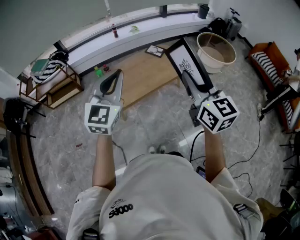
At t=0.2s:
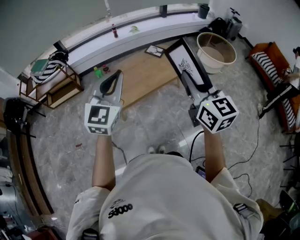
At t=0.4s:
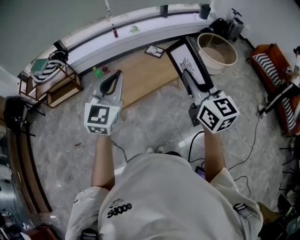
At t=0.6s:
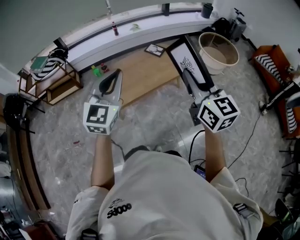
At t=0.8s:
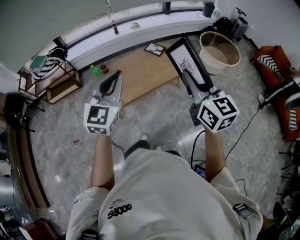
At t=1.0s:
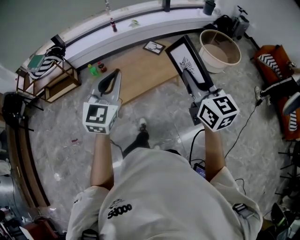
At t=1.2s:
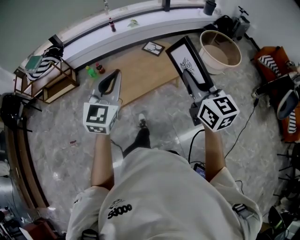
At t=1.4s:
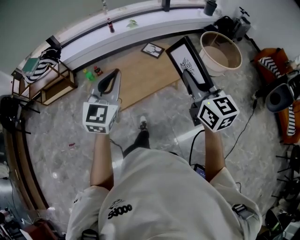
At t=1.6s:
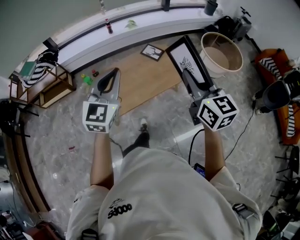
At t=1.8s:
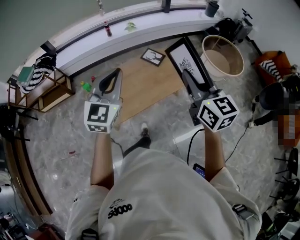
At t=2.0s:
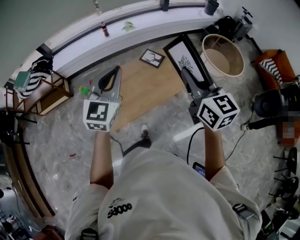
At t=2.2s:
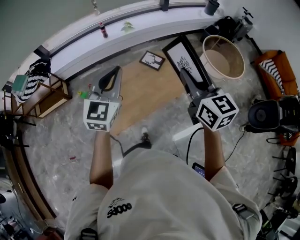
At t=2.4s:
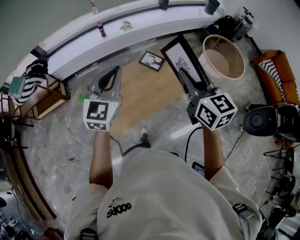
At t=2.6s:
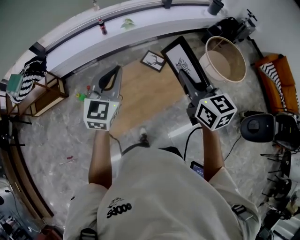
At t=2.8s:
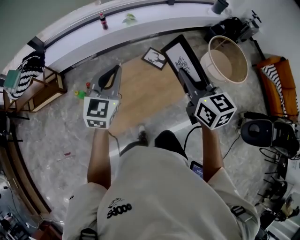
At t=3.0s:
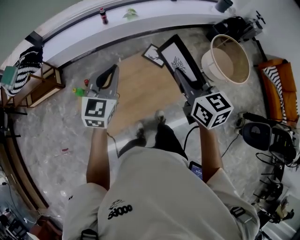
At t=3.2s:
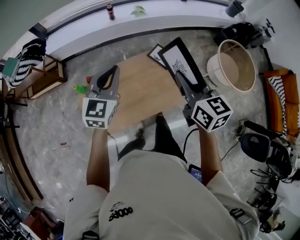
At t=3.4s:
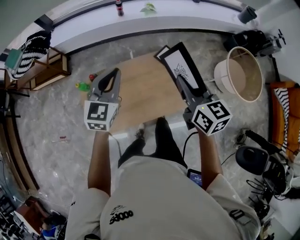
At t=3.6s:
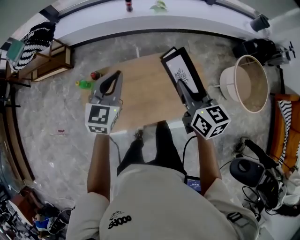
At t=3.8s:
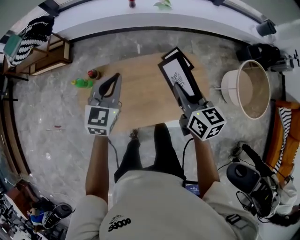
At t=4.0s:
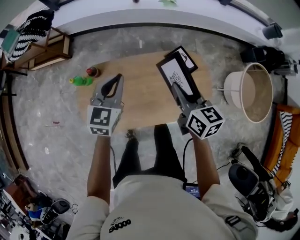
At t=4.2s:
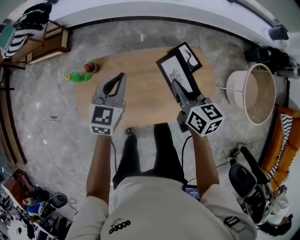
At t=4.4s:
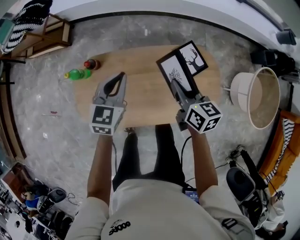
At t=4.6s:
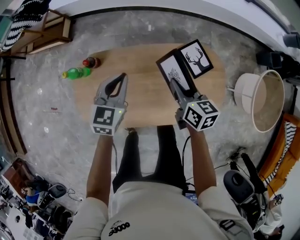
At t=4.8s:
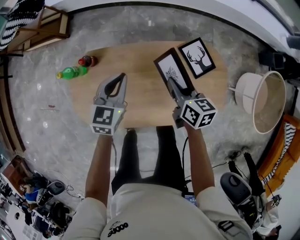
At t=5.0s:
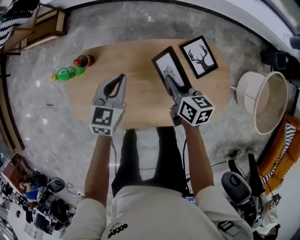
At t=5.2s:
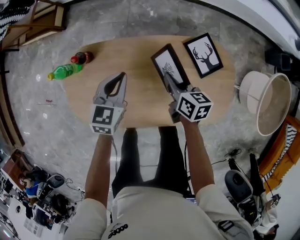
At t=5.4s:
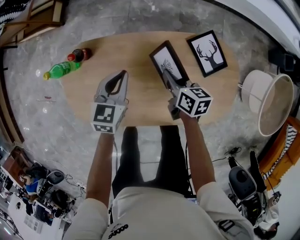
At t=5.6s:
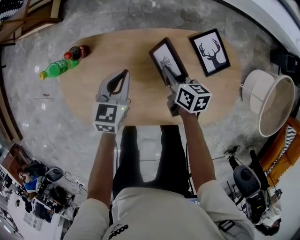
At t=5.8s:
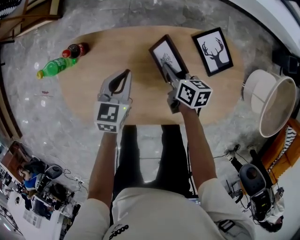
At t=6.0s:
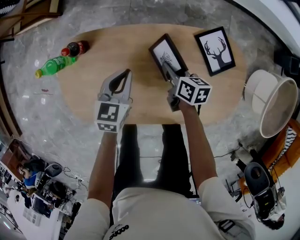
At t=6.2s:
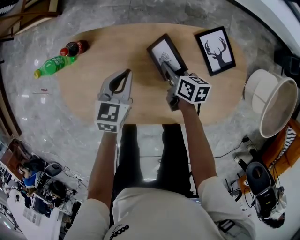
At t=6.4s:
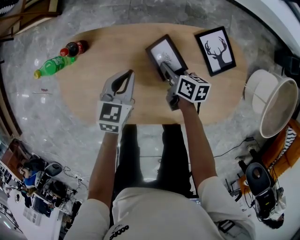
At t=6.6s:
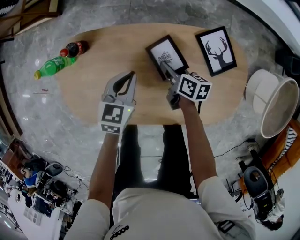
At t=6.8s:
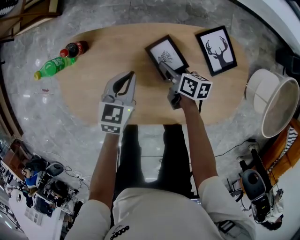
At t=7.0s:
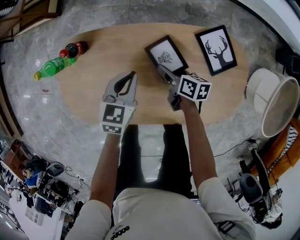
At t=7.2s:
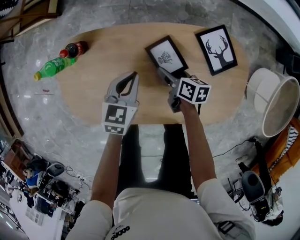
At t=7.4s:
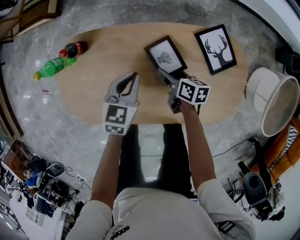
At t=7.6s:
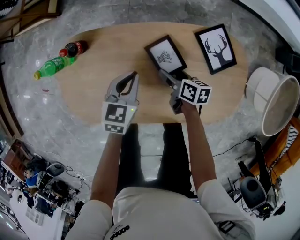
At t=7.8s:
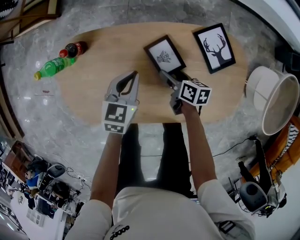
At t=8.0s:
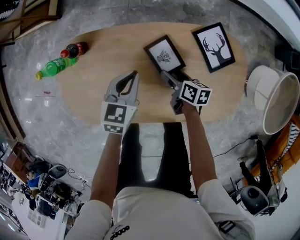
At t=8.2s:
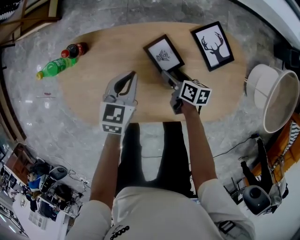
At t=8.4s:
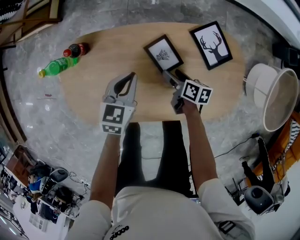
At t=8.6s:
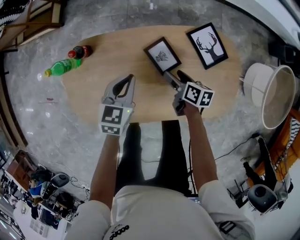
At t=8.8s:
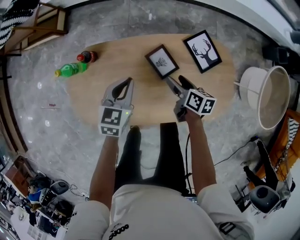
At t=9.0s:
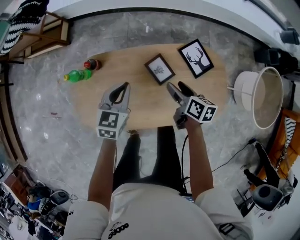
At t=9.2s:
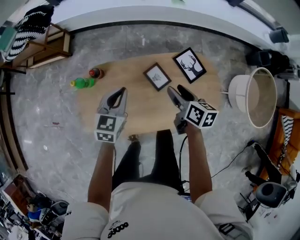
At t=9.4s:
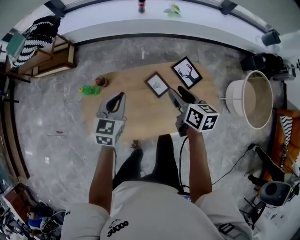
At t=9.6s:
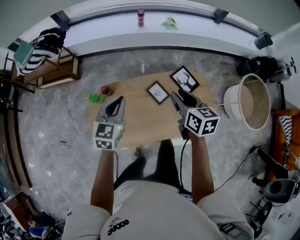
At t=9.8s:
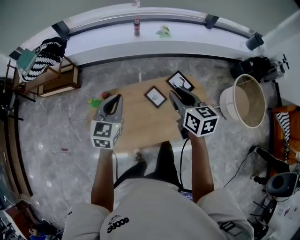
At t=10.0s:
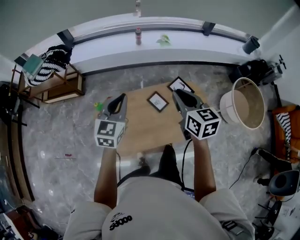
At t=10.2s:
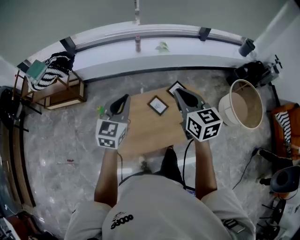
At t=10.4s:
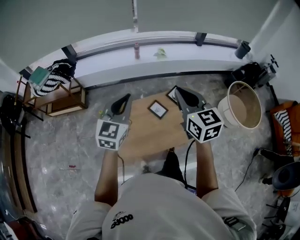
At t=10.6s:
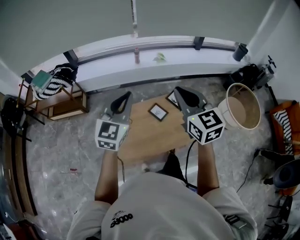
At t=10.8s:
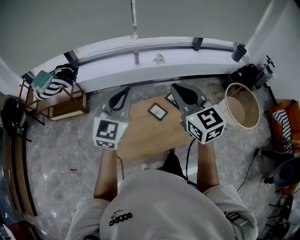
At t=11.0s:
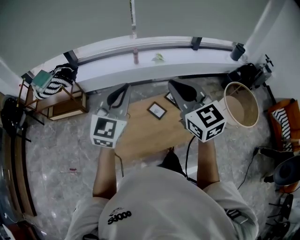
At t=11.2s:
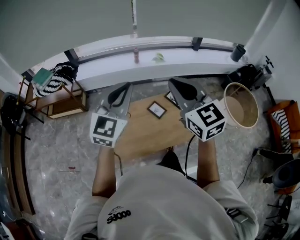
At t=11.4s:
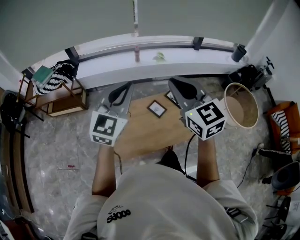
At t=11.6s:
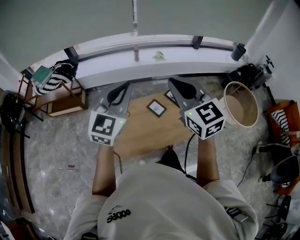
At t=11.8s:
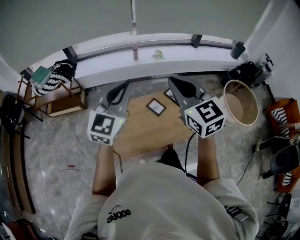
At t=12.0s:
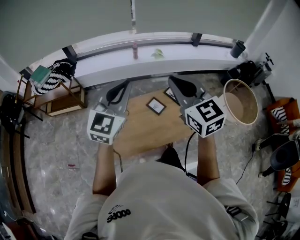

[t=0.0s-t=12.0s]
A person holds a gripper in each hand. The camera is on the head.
t=0.0s to t=1.6s: Both grippers move forward, about 20 cm.
t=1.6s to t=3.0s: Both grippers move forward, about 30 cm.
t=3.0s to t=4.4s: Both grippers travel together downward and forward, some 30 cm. The left gripper rotates about 30 degrees; the right gripper swivels about 30 degrees.
t=4.4s to t=6.0s: The two grippers go roughly 25 cm downward. The right gripper turns by approximately 20 degrees.
t=6.0s to t=7.6s: The right gripper opens.
t=7.6s to t=9.0s: Both grippers travel together upward, some 15 cm.
t=9.0s to t=10.4s: Both grippers move upward, some 40 cm. The right gripper rolls counterclockwise, seen from behind, by about 50 degrees, and closes; the left gripper changes its angle by approximately 30 degrees.
t=10.4s to t=12.0s: The two grippers go about 10 cm upward and backward.

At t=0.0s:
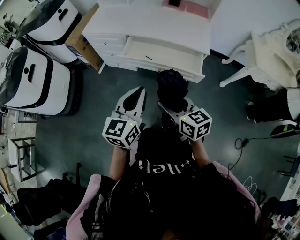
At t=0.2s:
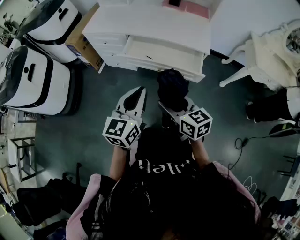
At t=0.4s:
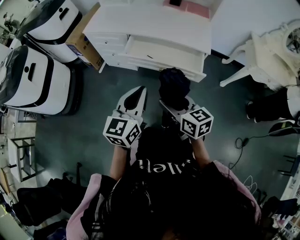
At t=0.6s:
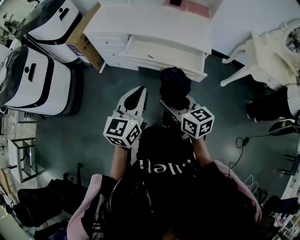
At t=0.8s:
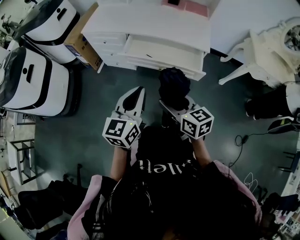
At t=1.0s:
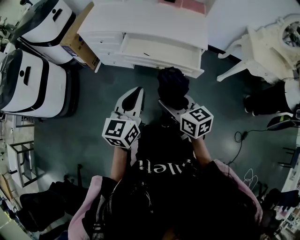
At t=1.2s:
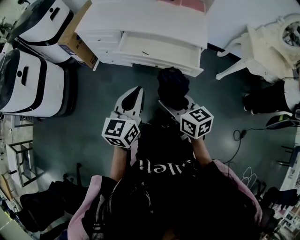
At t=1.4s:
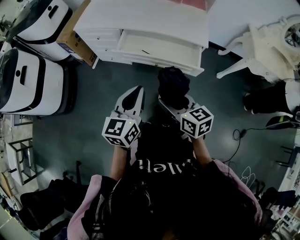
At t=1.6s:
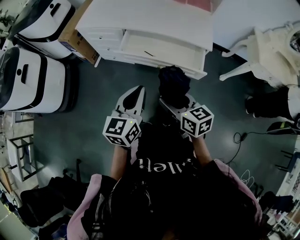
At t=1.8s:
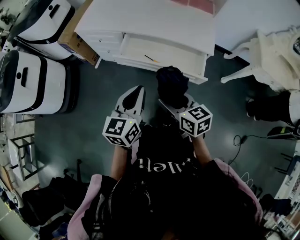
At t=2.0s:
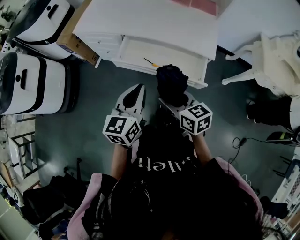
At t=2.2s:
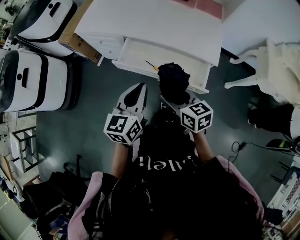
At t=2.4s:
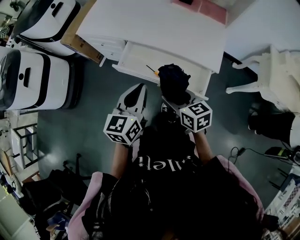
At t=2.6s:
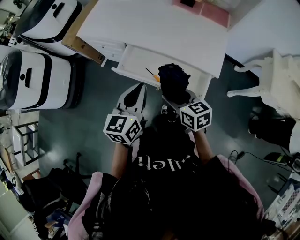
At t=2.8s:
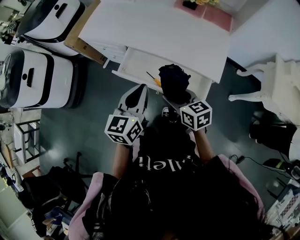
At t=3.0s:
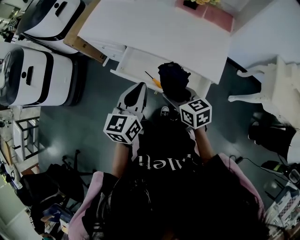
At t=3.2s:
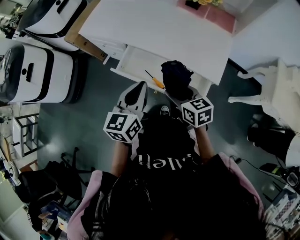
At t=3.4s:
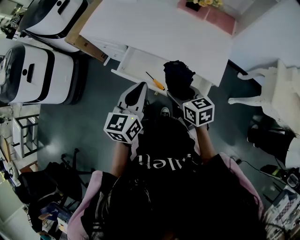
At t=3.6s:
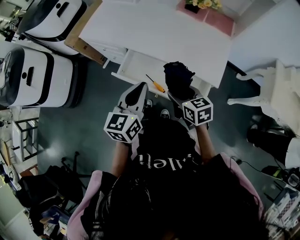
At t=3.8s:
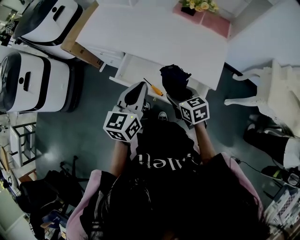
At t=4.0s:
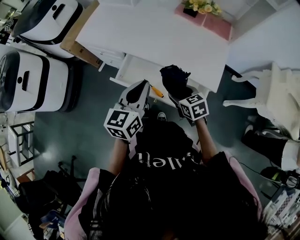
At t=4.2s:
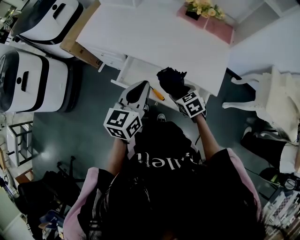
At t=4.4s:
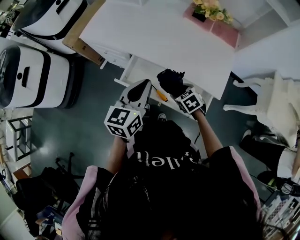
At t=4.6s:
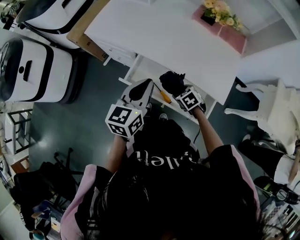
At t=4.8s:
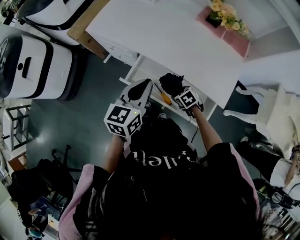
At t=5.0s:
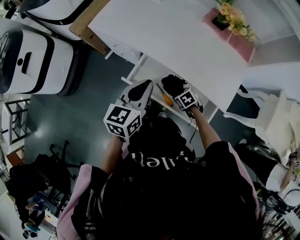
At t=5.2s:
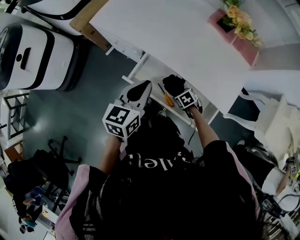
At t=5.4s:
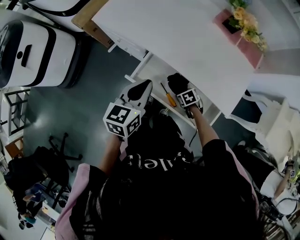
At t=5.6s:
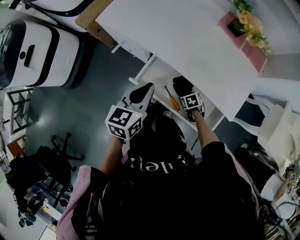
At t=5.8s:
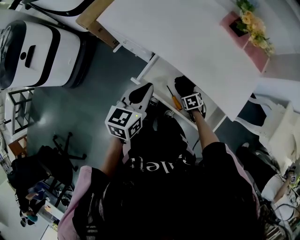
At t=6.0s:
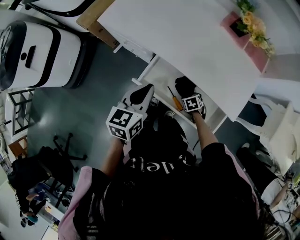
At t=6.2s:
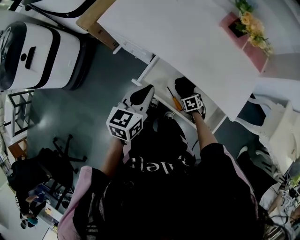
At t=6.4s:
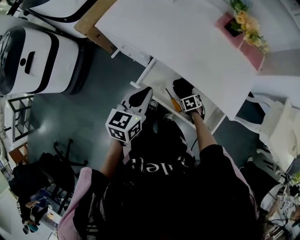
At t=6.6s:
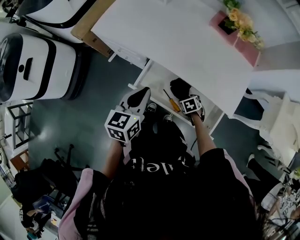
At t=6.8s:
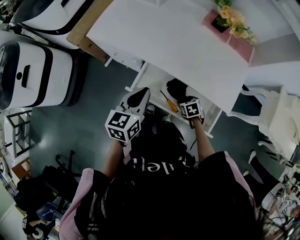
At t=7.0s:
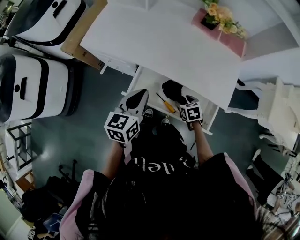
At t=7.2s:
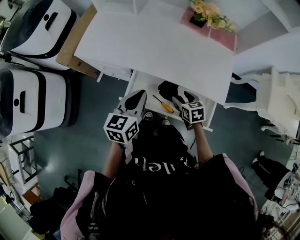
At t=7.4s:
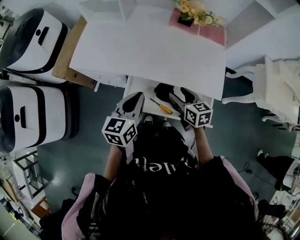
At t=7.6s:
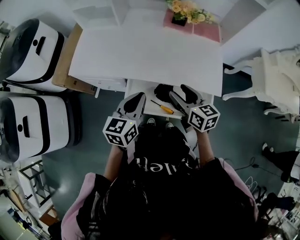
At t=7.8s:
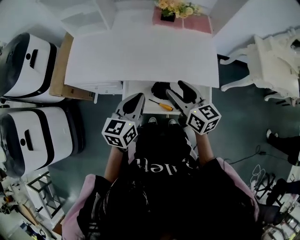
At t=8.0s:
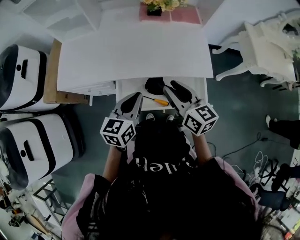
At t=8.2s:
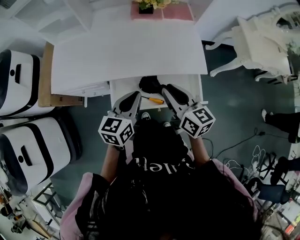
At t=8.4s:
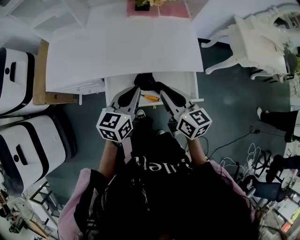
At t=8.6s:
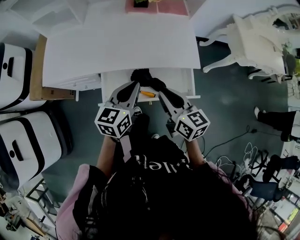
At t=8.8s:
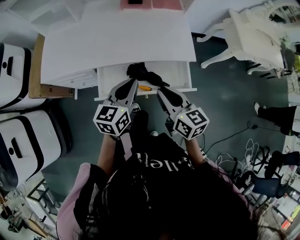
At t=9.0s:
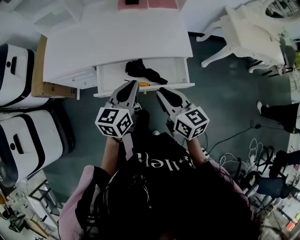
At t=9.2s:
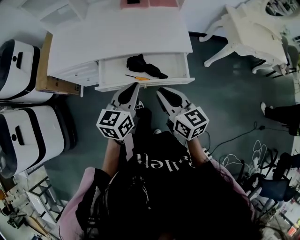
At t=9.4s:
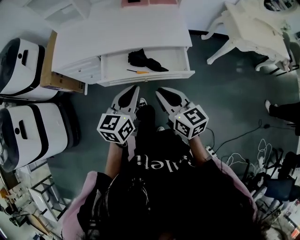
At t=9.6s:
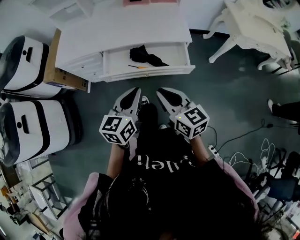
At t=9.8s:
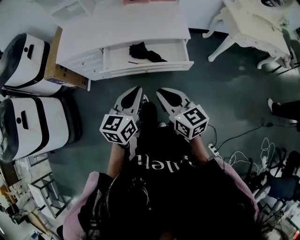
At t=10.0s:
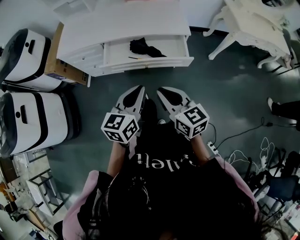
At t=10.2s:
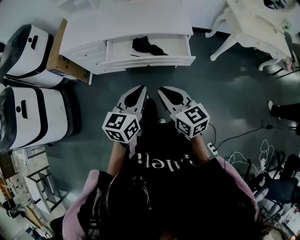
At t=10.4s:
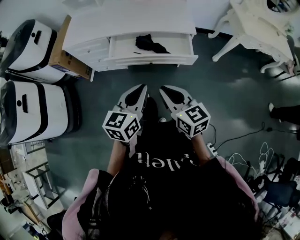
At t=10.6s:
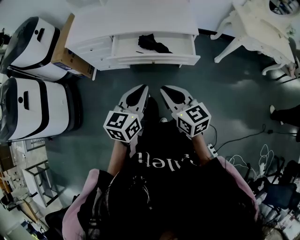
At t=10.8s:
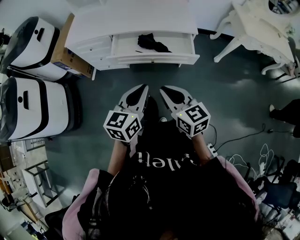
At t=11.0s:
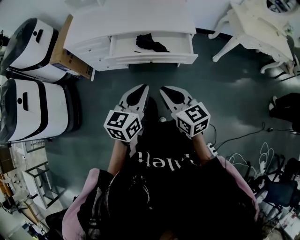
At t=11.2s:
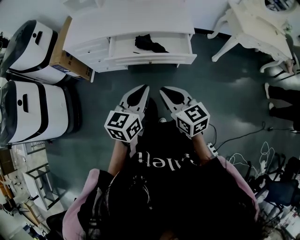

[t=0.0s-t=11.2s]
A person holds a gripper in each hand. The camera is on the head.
t=0.0s to t=1.6s: The left gripper changes place by some 5 cm. Meanwhile the right gripper changes place by about 5 cm.
t=1.6s to t=3.2s: Both grippers travel together forward and to the right, about 25 cm.
t=3.2s to t=4.8s: The right gripper travels downward and forward by some 25 cm, and angles its fingers downward, by roughly 40 degrees. The left gripper moves forward and to the left, roughly 15 cm.
t=4.8s to t=6.4s: The left gripper shifts by approximately 10 cm. The right gripper heads downward, covering roughly 10 cm.
t=6.4s to t=8.0s: The left gripper ends up roughly 10 cm from where it was, and changes its angle by about 30 degrees; the right gripper travels upward by some 40 cm, points its fingers roughly 70 degrees further upward, and closes.
t=8.0s to t=9.6s: The left gripper shifts approximately 30 cm backward and to the right. Meanwhile the right gripper goes about 30 cm backward, and closes.
t=9.6s to t=11.2s: The grippers both shift backward by roughly 10 cm.
